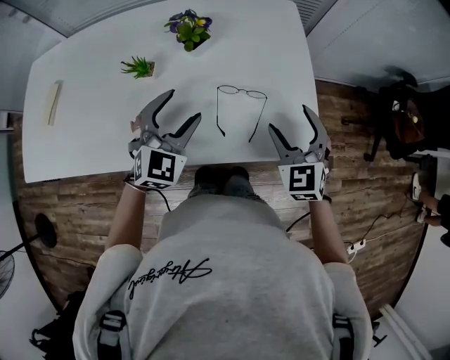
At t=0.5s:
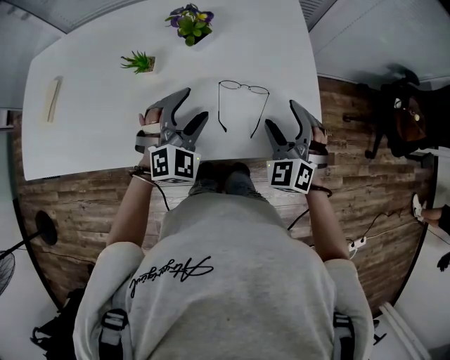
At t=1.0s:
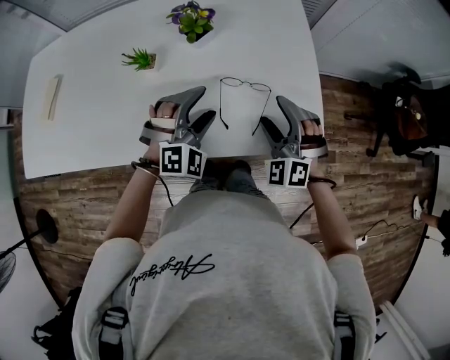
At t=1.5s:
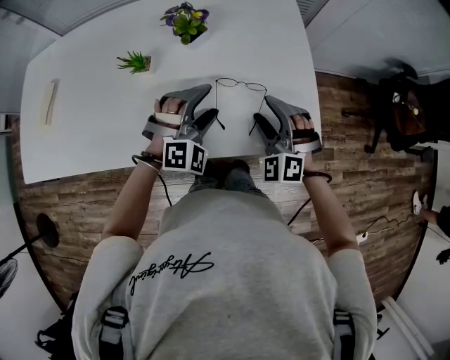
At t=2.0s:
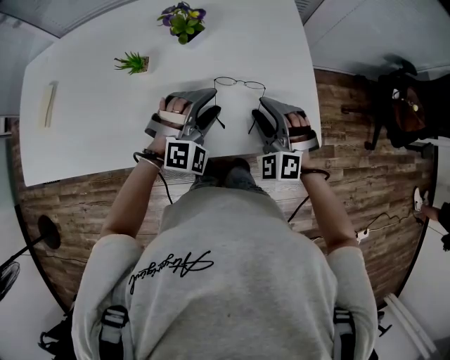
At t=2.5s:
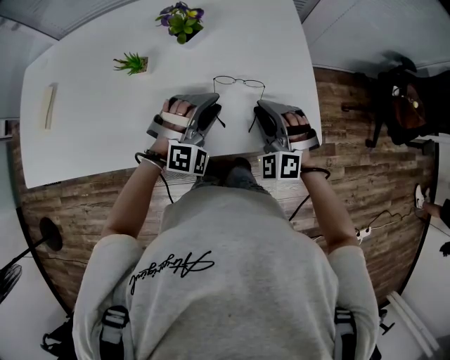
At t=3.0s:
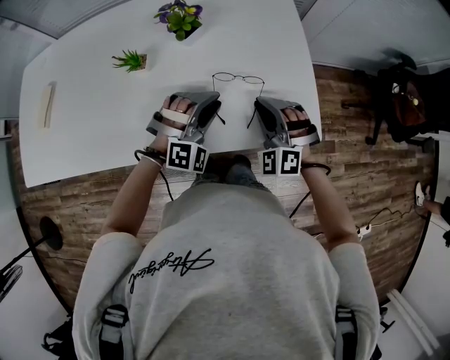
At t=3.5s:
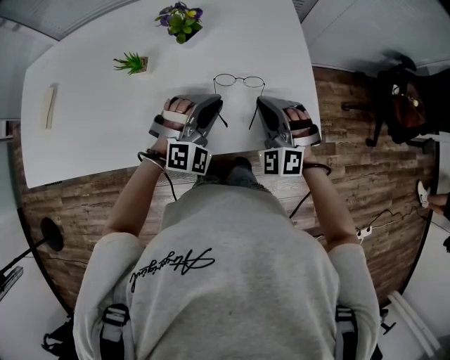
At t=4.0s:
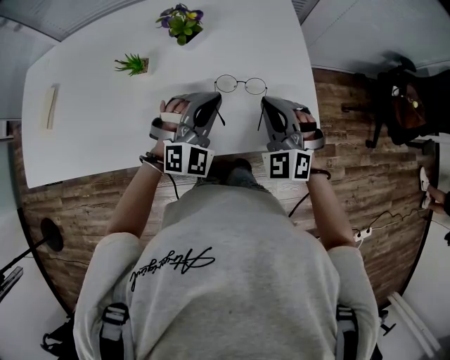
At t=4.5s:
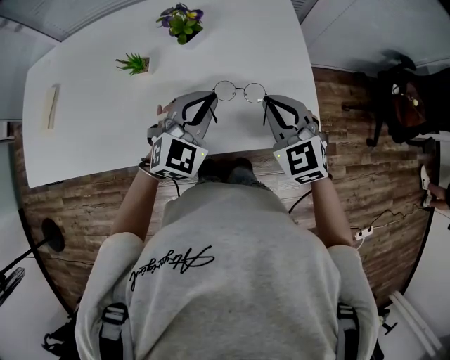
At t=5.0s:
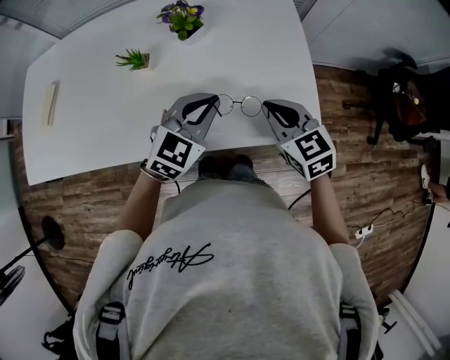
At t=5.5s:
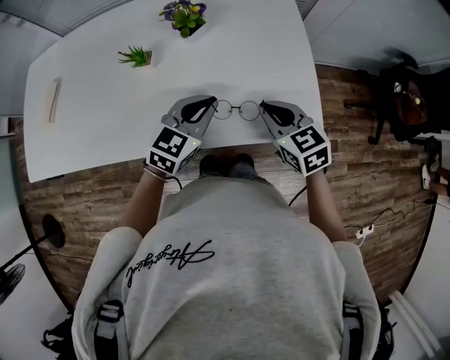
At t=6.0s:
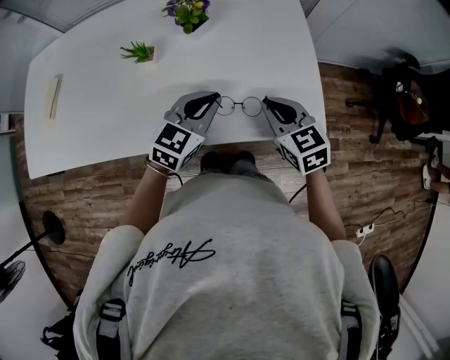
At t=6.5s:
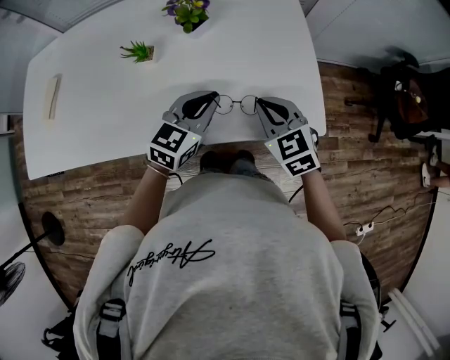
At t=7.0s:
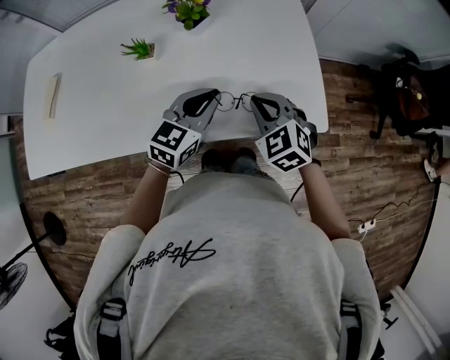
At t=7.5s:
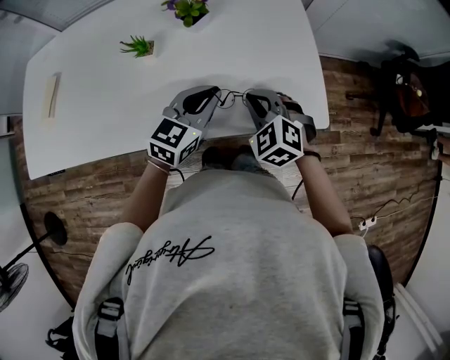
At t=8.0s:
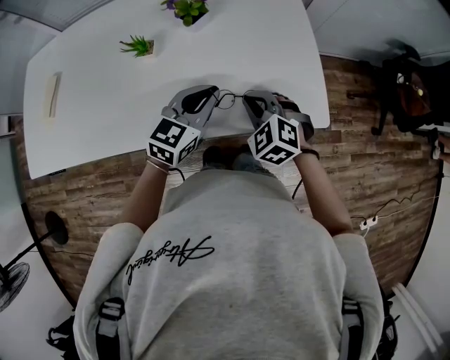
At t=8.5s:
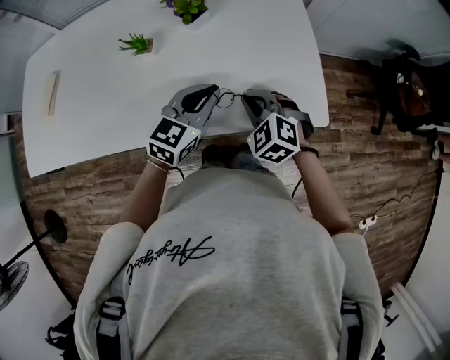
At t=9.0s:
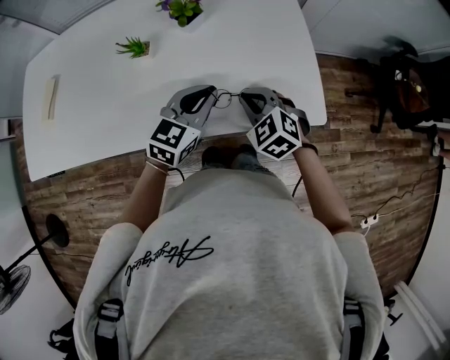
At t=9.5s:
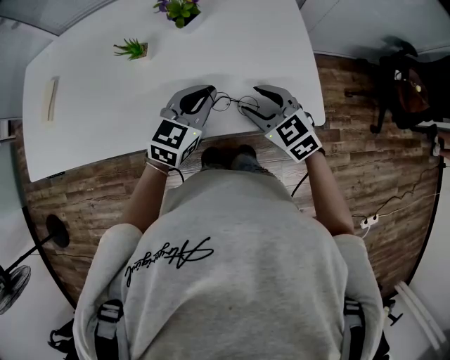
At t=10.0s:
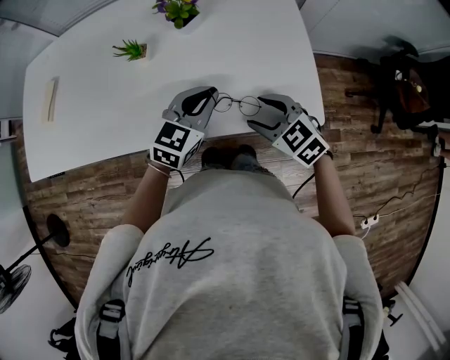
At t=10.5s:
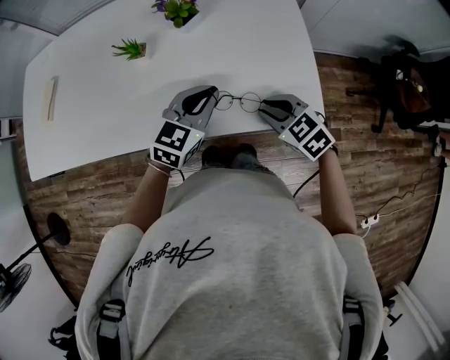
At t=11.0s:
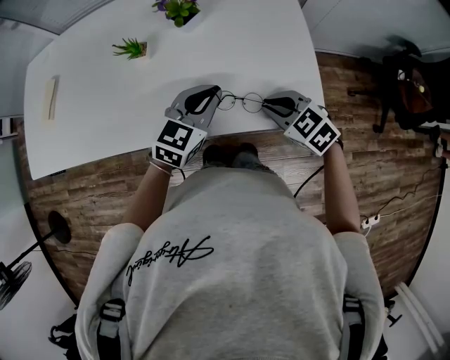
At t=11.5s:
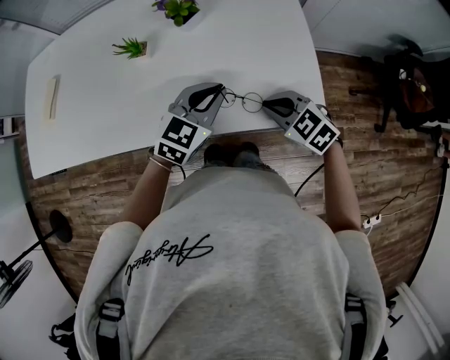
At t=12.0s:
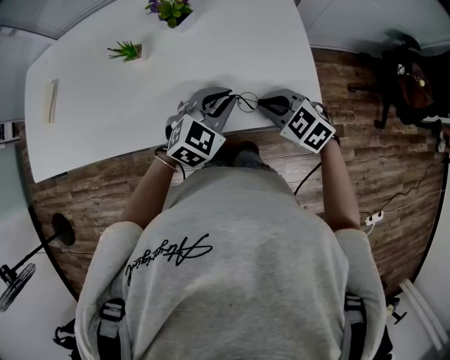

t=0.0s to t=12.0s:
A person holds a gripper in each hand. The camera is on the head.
t=0.0s to t=2.0s: The left gripper shifts approximately 10 cm to the right and downward, and swivels some 40 degrees; the right gripper heads downward and to the left, covering about 10 cm, rotates approximately 30 degrees, and closes.
t=2.0s to t=4.0s: The left gripper closes up; the right gripper changes place by roughly 5 cm, and closes its fingers.
t=4.0s to t=6.0s: The left gripper rotates around the line of its fingers by some 50 degrees, counterclockwise from behind. The right gripper rotates around the line of its fingers by about 50 degrees, clockwise from behind.
t=6.0s to t=8.0s: The right gripper heads to the left, covering about 5 cm, and turns by approximately 40 degrees.
t=8.0s to t=10.0s: The right gripper swivels roughly 20 degrees, and opens up.
t=10.0s to t=12.0s: The right gripper closes. Meanwhile the left gripper changes place by about 5 cm, and turns by approximately 20 degrees.

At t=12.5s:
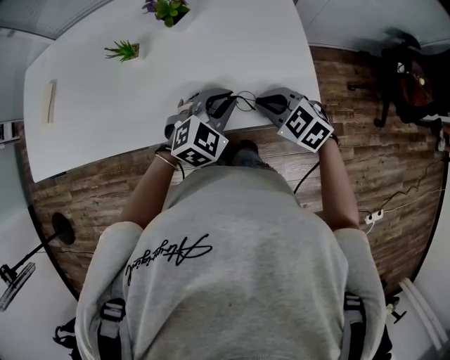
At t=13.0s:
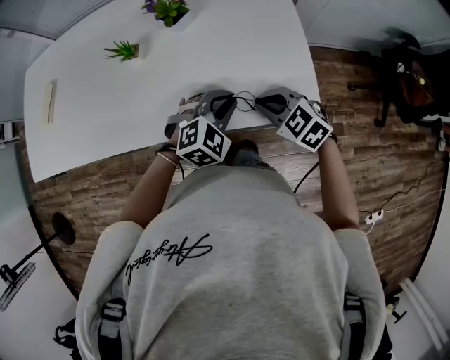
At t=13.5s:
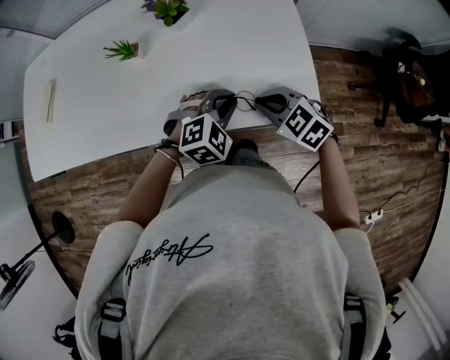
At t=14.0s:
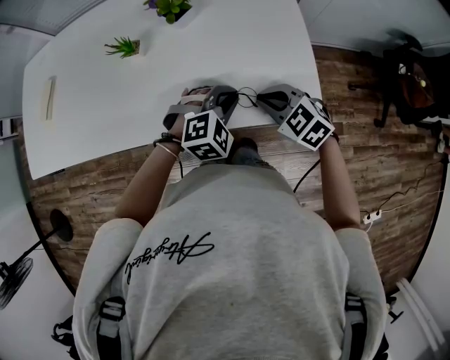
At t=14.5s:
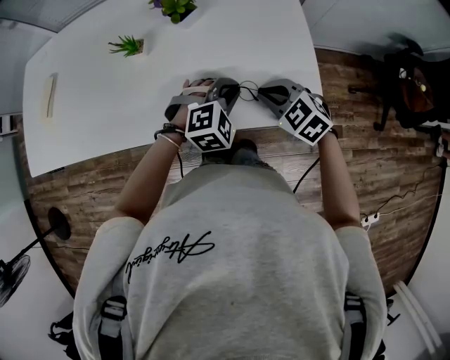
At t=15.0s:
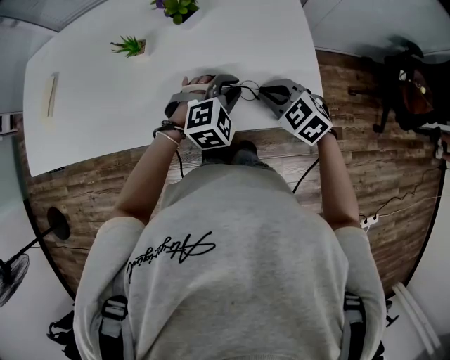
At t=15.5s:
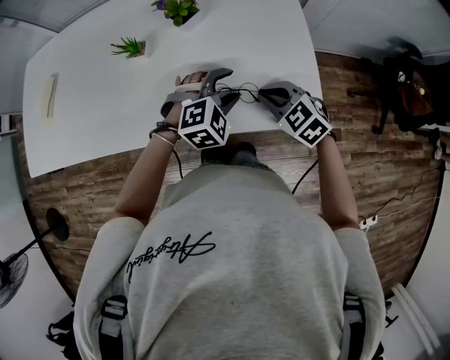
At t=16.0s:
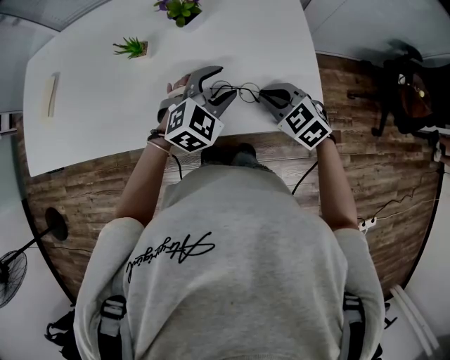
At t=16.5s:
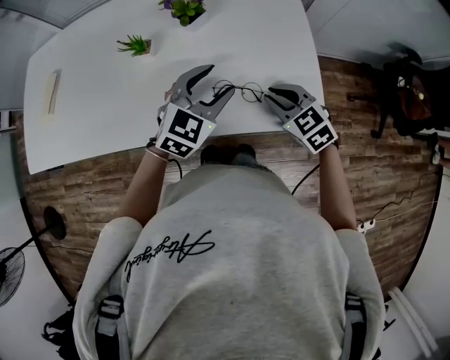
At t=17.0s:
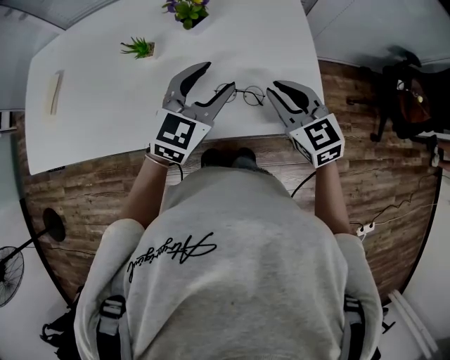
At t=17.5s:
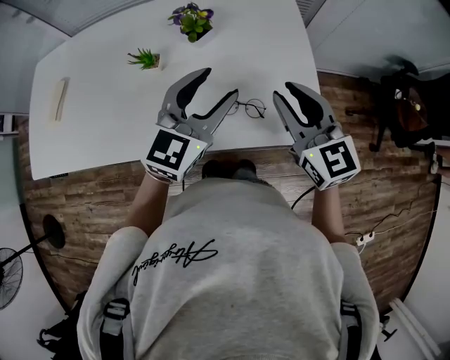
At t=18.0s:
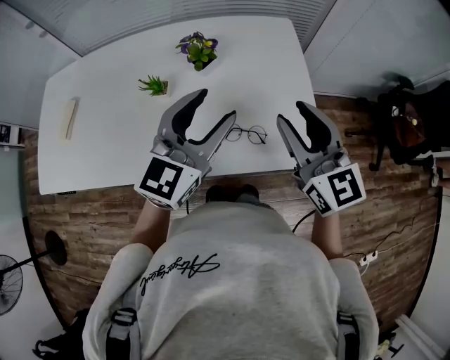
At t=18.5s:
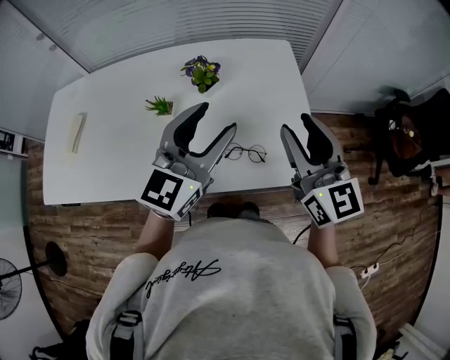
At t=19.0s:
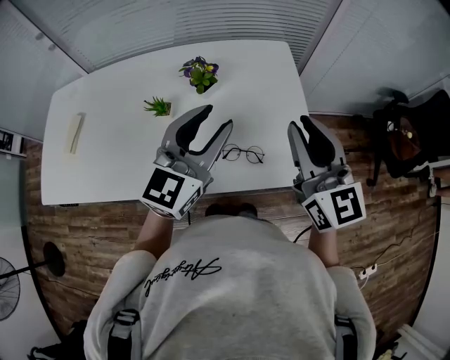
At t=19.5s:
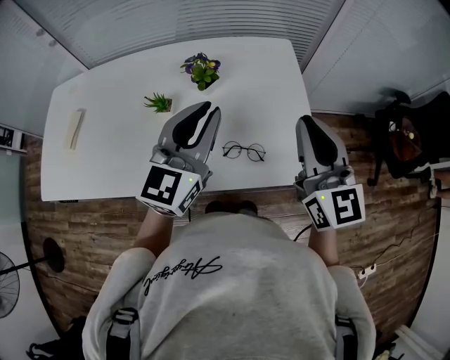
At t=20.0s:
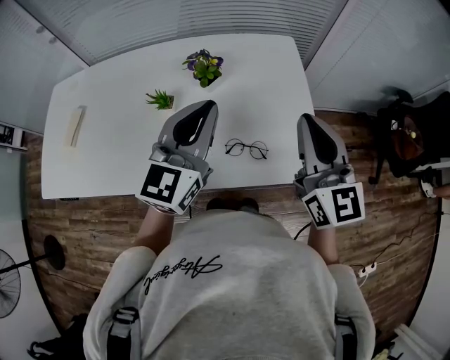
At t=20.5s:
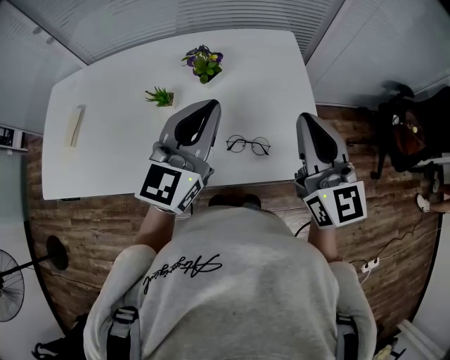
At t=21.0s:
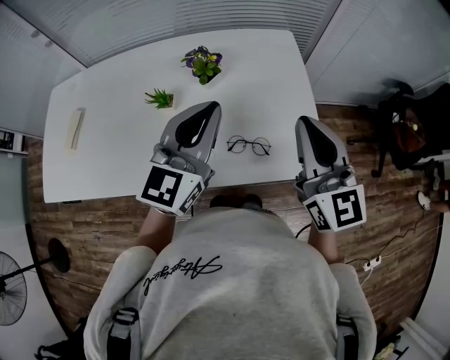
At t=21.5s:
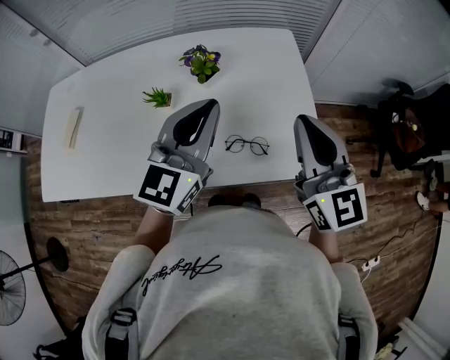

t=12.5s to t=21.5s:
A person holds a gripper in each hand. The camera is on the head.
t=12.5s to t=14.5s: The grippers stay close to where they were, moving slightly.
t=14.5s to t=17.0s: The right gripper moves upward, roughly 10 cm, and changes its angle by roughly 30 degrees. The left gripper goes approximately 15 cm upward and to the left, swivels about 50 degrees, and opens up.
t=17.0s to t=19.5s: Both grippers move upward, roughly 15 cm. The right gripper changes its angle by about 30 degrees. The left gripper closes.
t=19.5s to t=21.5s: The grippers stay close to where they were, moving slightly.

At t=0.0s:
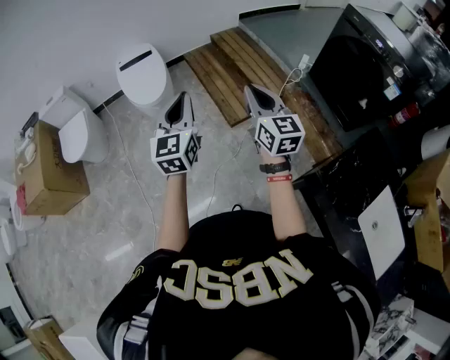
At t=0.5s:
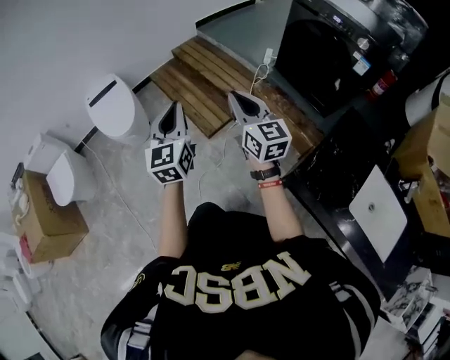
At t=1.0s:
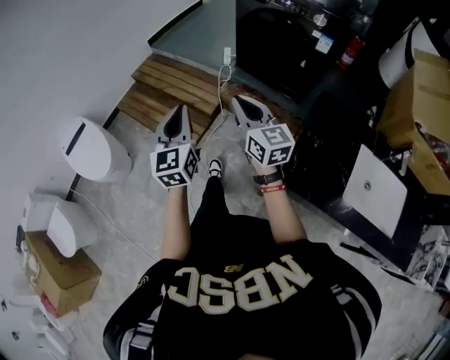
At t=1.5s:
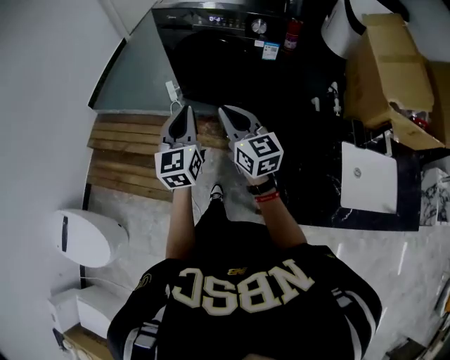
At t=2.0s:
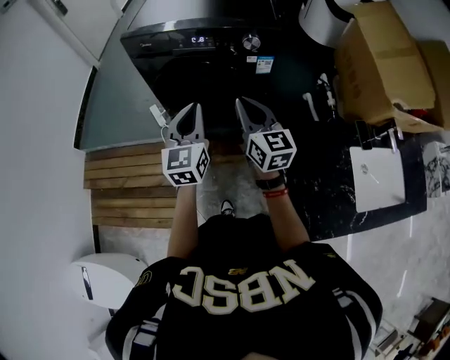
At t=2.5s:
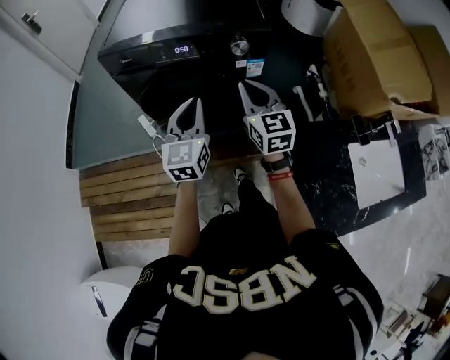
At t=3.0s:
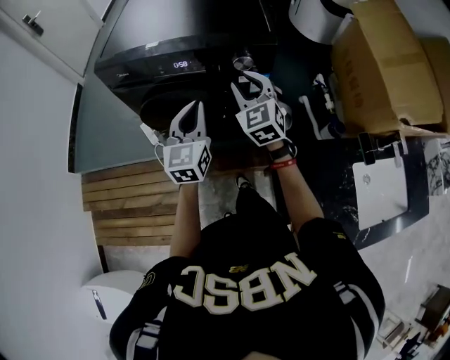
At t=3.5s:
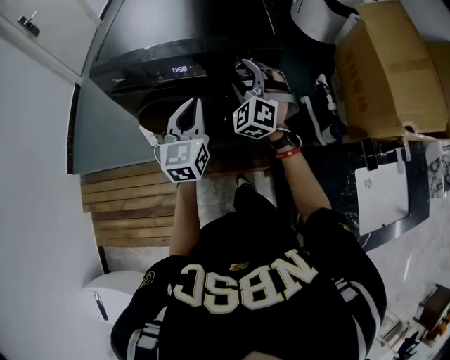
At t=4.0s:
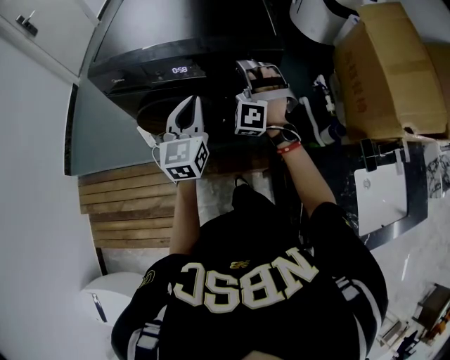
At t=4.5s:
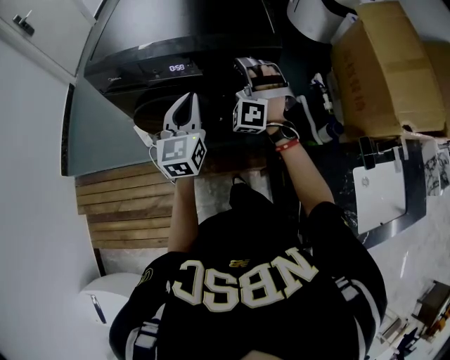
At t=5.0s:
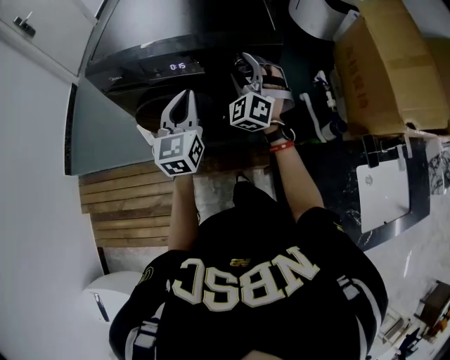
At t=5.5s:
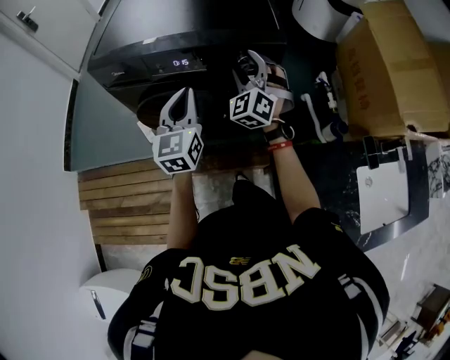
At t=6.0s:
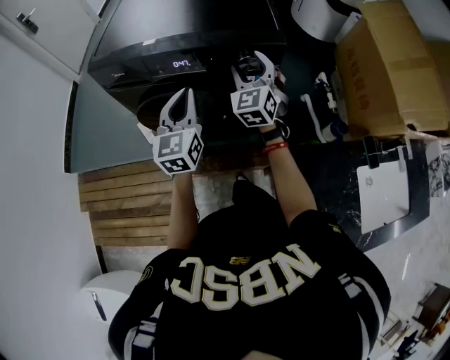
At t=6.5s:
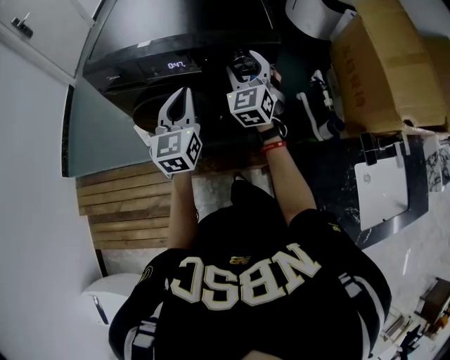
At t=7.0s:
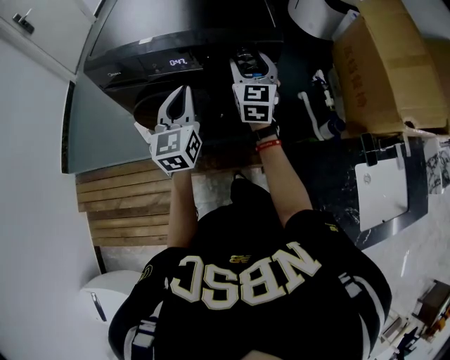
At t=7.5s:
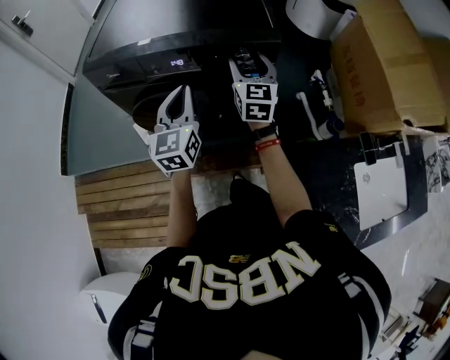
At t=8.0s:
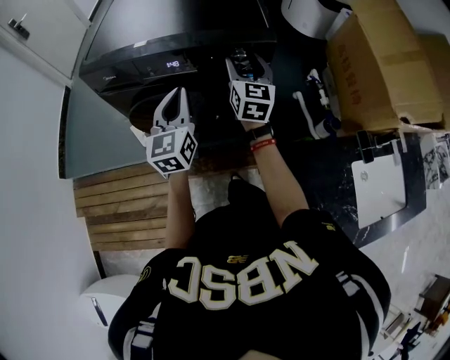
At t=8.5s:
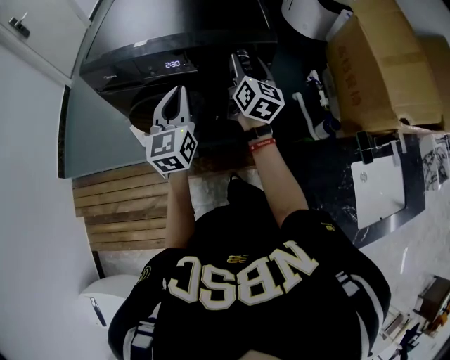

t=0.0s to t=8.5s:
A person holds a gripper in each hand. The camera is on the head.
t=0.0s to t=2.0s: The pair of grippers is taken some 70 cm. The right gripper rotates some 60 degrees; the left gripper changes its angle by approximately 60 degrees.
t=2.0s to t=4.0s: The two grippers go about 25 cm forward. The right gripper twists about 90 degrees counterclockwise, seen from behind, and opens its fingers.
t=4.0s to t=6.5s: The right gripper twists approximately 50 degrees clockwise, seen from behind.
t=6.5s to t=8.5s: The right gripper twists approximately 60 degrees clockwise, seen from behind.
